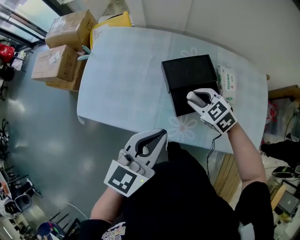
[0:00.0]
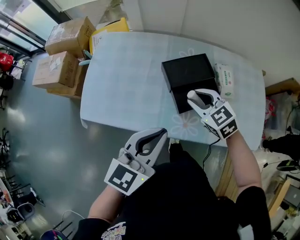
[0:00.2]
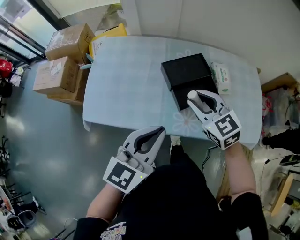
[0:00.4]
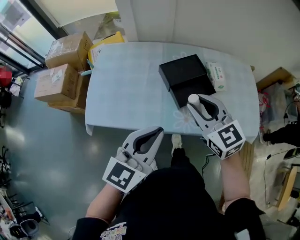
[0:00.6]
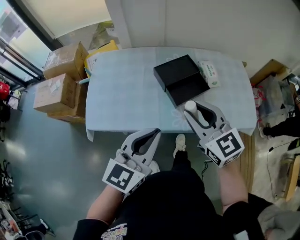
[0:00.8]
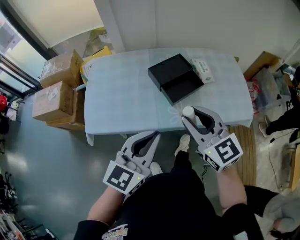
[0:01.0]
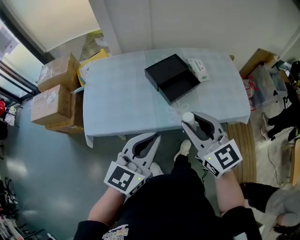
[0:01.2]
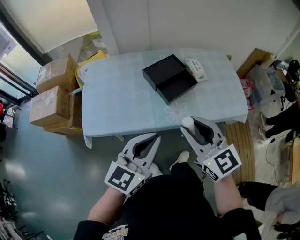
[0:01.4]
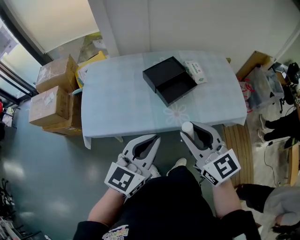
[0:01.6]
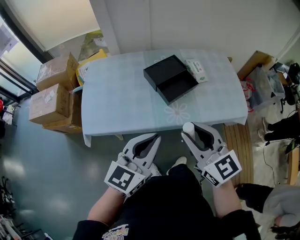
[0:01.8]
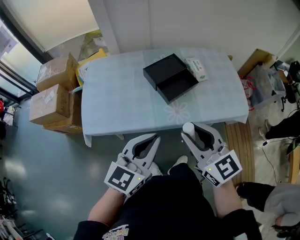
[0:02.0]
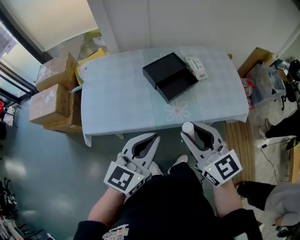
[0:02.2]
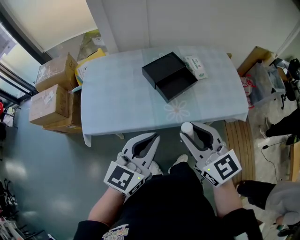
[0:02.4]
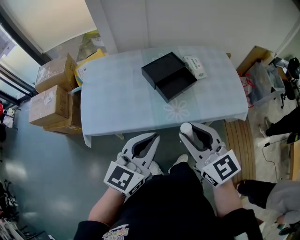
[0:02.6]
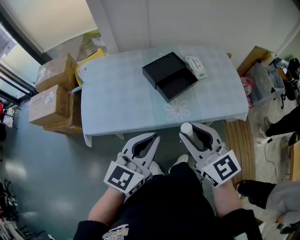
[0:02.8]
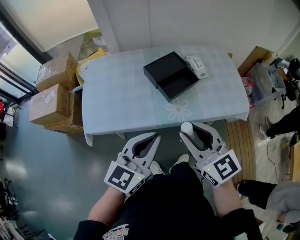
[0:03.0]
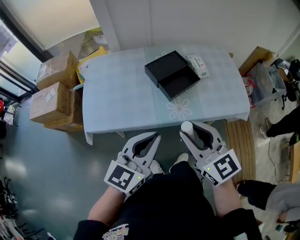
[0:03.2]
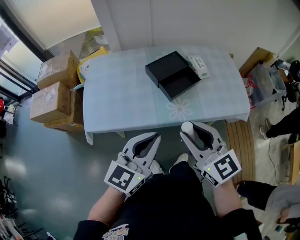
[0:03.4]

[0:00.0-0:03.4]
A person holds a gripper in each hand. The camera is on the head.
0:00.0 to 0:01.6: The left gripper shifts about 15 cm backward, and rotates about 20 degrees. The right gripper heads backward and upward, covering roughly 35 cm, and angles its fingers upward, by approximately 40 degrees.
0:01.6 to 0:03.4: There are only small adjustments of the grippers.

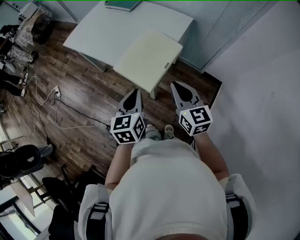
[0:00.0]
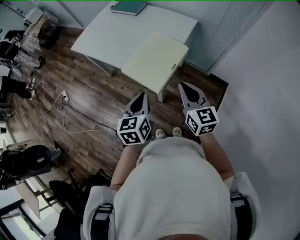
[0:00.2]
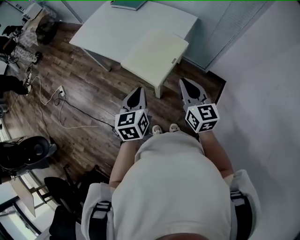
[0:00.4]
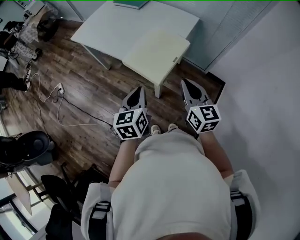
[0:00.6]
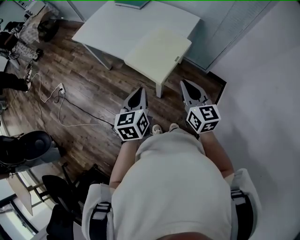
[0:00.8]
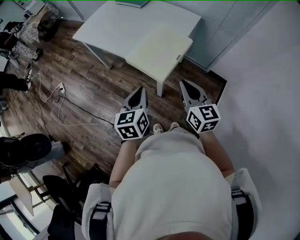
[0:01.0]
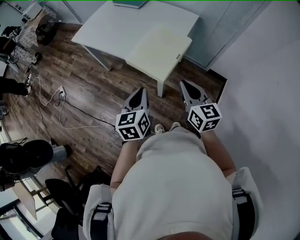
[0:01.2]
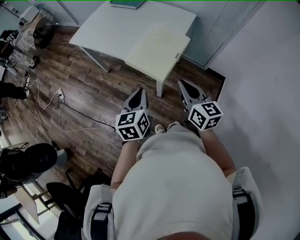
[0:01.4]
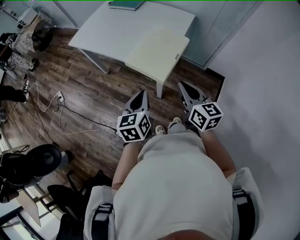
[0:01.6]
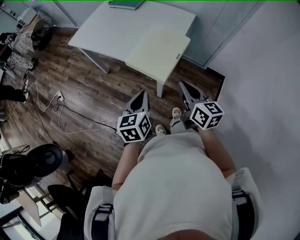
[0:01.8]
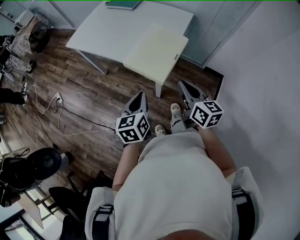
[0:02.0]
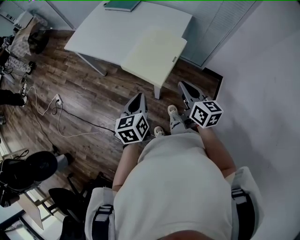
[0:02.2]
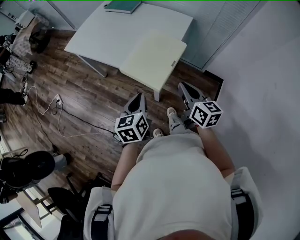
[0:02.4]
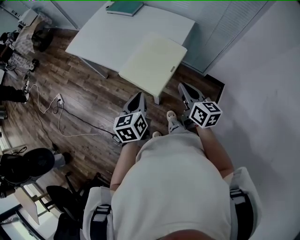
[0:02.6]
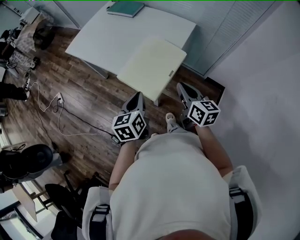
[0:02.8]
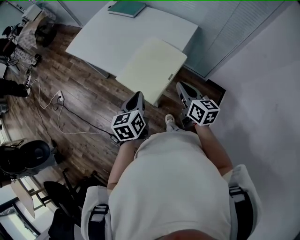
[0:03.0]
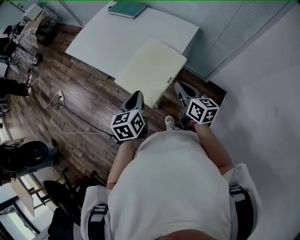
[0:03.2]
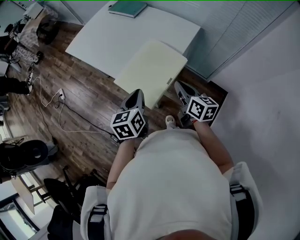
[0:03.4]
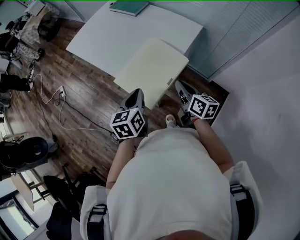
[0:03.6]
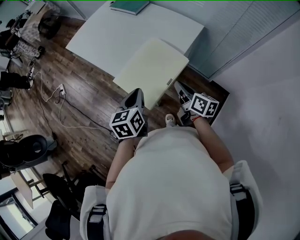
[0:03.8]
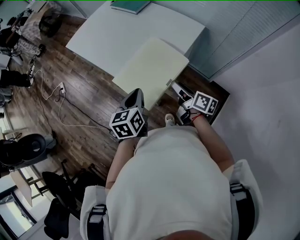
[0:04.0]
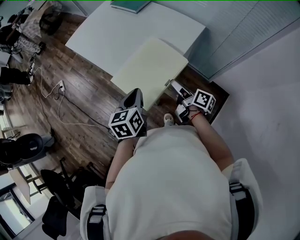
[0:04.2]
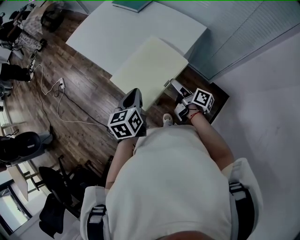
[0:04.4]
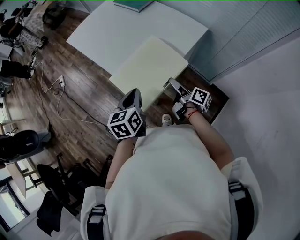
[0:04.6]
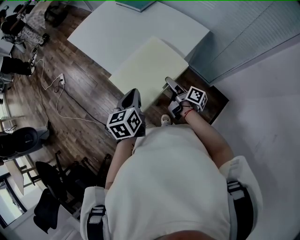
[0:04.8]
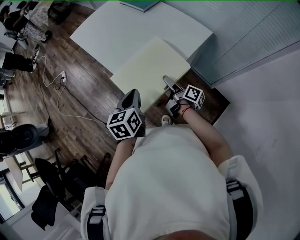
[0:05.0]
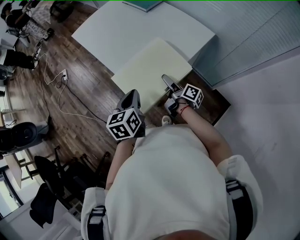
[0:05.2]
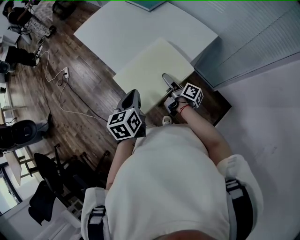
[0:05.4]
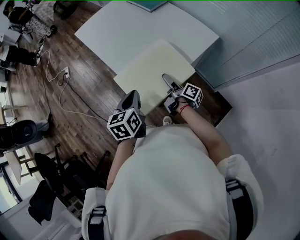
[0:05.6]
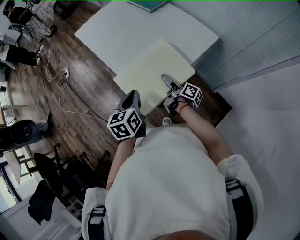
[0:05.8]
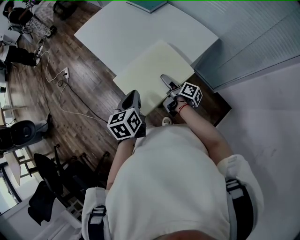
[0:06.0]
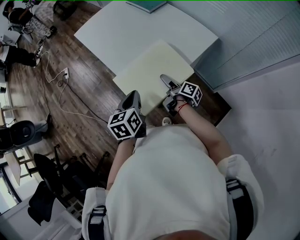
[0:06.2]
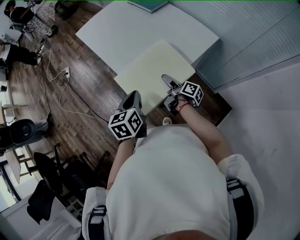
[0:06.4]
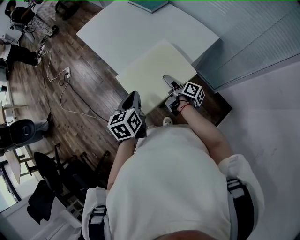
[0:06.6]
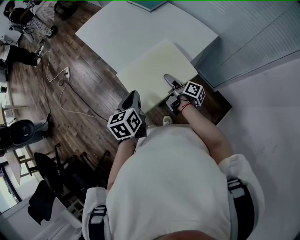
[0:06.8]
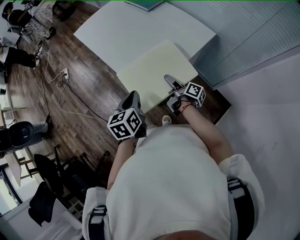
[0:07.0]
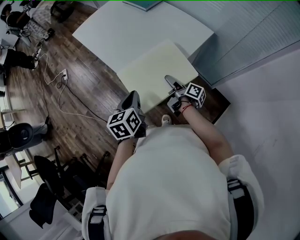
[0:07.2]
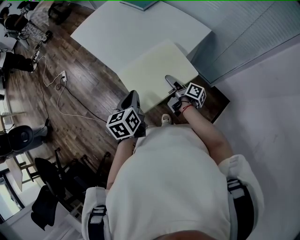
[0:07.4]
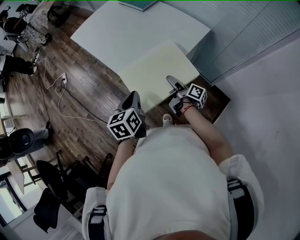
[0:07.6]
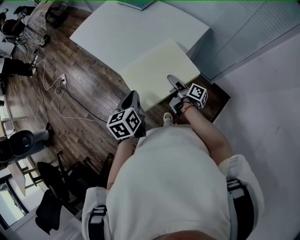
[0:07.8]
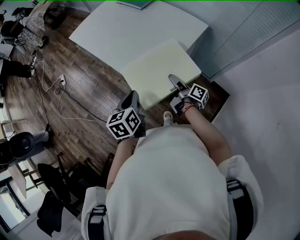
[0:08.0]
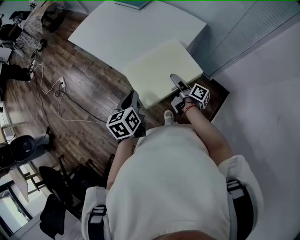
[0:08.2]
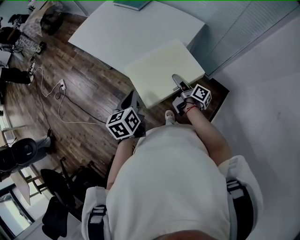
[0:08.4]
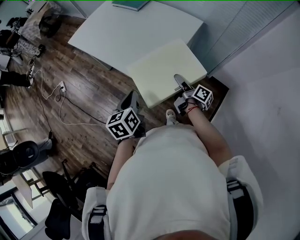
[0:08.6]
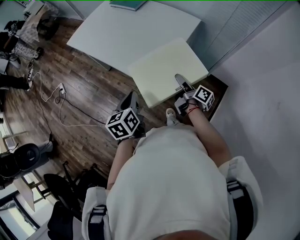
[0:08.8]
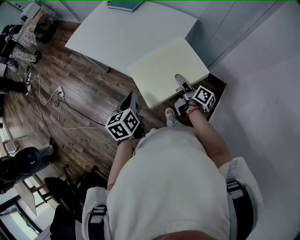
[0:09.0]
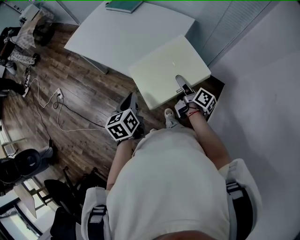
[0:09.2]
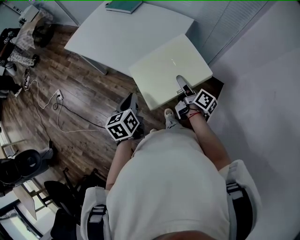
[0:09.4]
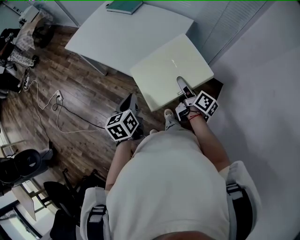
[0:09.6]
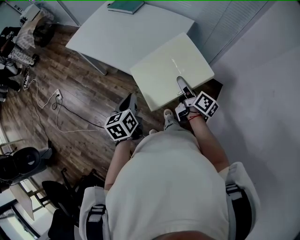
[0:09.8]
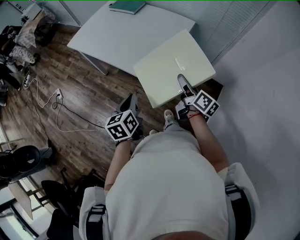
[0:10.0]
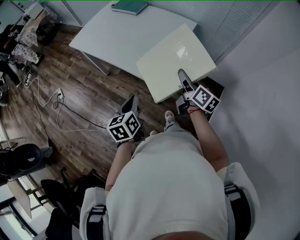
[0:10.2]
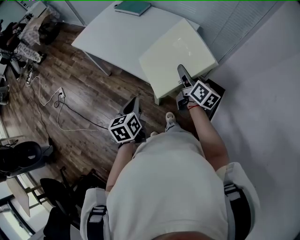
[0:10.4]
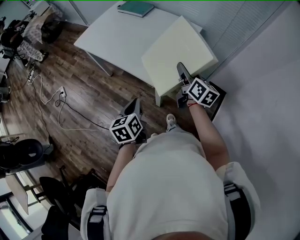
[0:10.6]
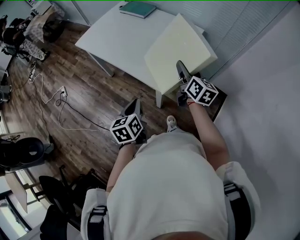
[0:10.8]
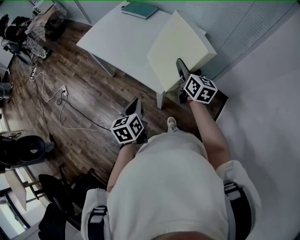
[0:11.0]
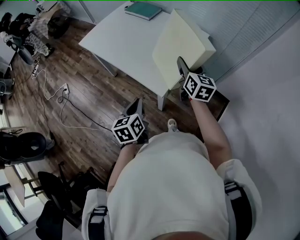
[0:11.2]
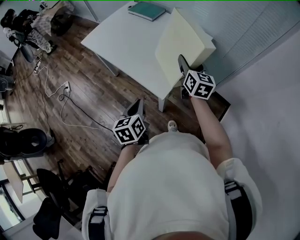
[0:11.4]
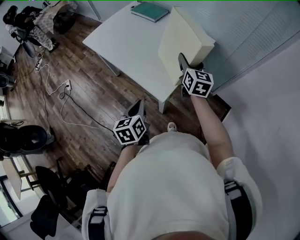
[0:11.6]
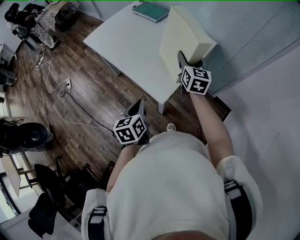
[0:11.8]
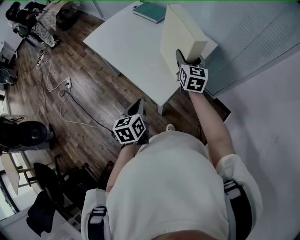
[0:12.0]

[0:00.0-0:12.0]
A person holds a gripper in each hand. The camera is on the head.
0:00.0 to 0:01.6: Both grippers move backward, about 5 cm.
0:01.6 to 0:03.0: The right gripper is displaced forward and to the right by about 15 cm. Meanwhile the left gripper shifts roughly 10 cm forward.
0:03.0 to 0:04.4: The right gripper is displaced downward and forward by some 15 cm, rotates around the line of its fingers by approximately 50 degrees, clockwise from behind, and opens up.
0:04.4 to 0:06.0: The right gripper moves forward and downward, approximately 10 cm.
0:06.0 to 0:07.6: The right gripper travels backward by some 5 cm.
0:07.6 to 0:09.0: The right gripper is displaced upward and backward by about 10 cm, while the left gripper ends up roughly 5 cm from where it was.
0:09.0 to 0:10.4: The right gripper is displaced upward by about 10 cm, and changes its angle by roughly 30 degrees.
0:10.4 to 0:12.0: The right gripper is displaced forward by some 20 cm, and changes its angle by roughly 40 degrees, while the left gripper is displaced forward by roughly 10 cm.

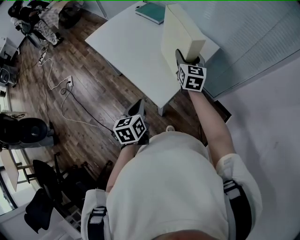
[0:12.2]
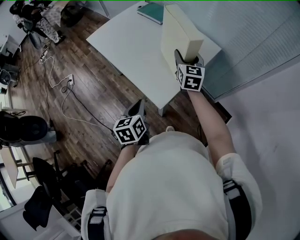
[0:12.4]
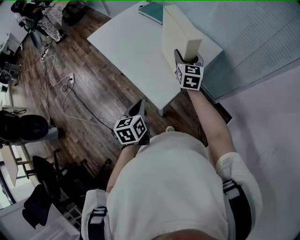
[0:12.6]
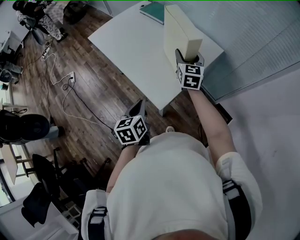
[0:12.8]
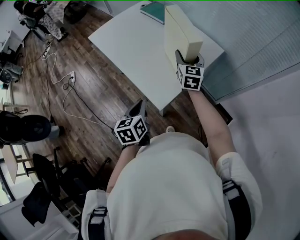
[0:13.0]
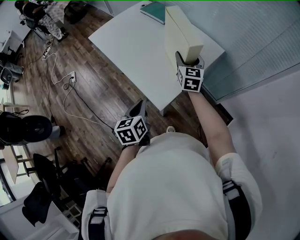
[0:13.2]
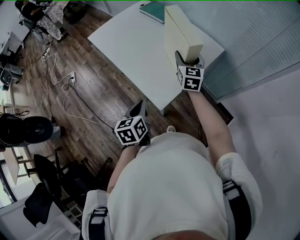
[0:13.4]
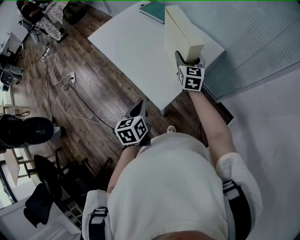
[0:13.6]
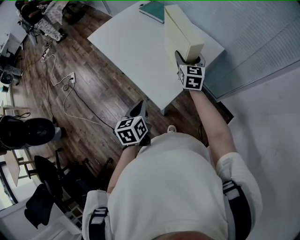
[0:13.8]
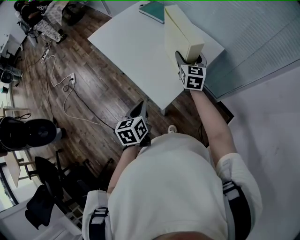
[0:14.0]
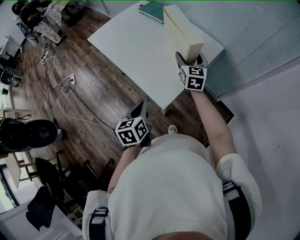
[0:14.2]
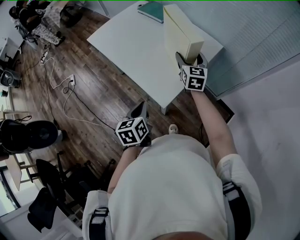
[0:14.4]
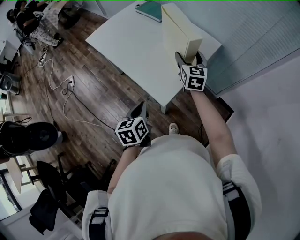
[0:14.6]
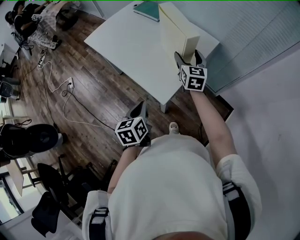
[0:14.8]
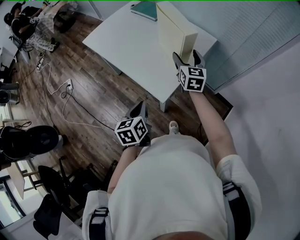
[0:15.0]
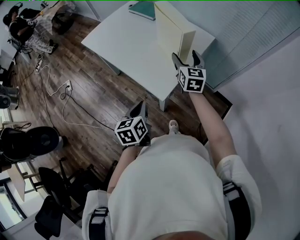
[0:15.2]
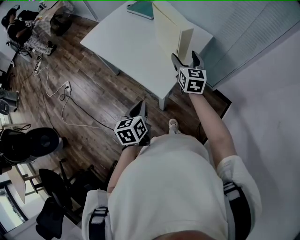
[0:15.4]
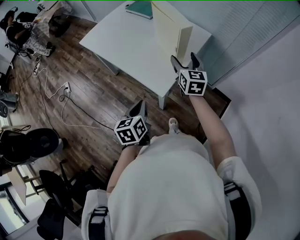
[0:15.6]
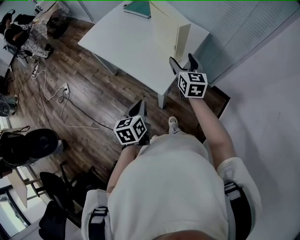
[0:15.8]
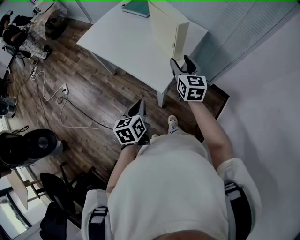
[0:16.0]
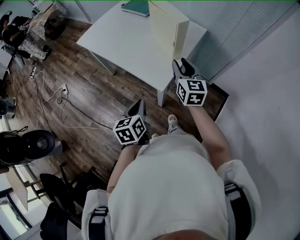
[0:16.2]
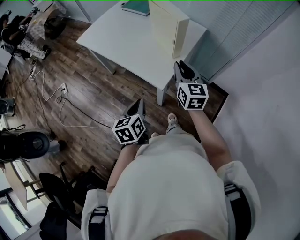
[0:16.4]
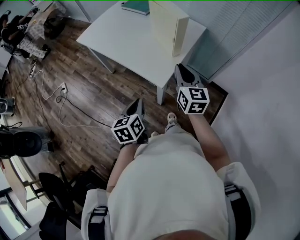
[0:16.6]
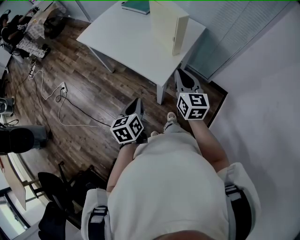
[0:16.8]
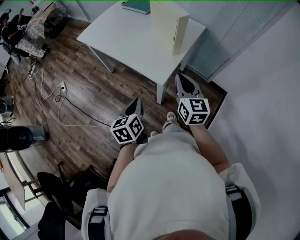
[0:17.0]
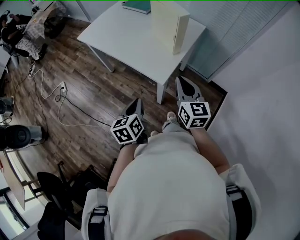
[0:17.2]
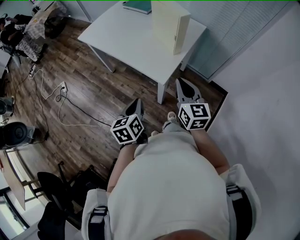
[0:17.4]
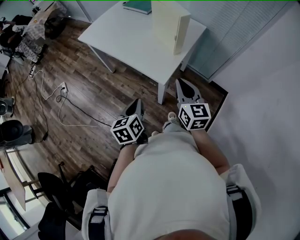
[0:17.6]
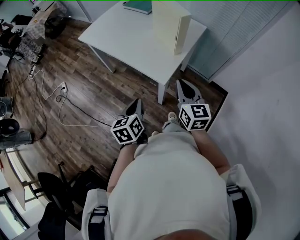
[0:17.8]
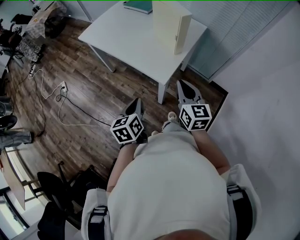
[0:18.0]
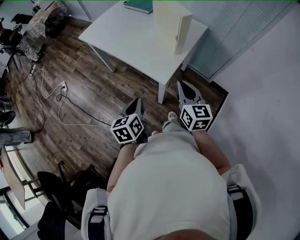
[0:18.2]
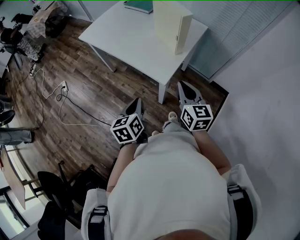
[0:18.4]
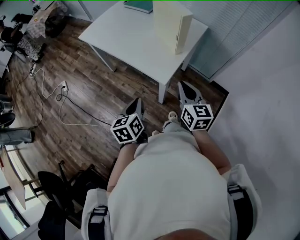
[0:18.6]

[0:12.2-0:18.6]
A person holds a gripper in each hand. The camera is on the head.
0:12.2 to 0:13.8: The grippers stay close to where they were, moving slightly.
0:13.8 to 0:15.4: The left gripper ends up roughly 5 cm from where it was; the right gripper moves backward, some 10 cm.
0:15.4 to 0:17.0: The left gripper shifts approximately 5 cm backward, while the right gripper moves backward, about 20 cm, and closes up.
0:17.0 to 0:18.6: The grippers make only small movements.

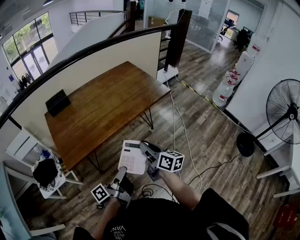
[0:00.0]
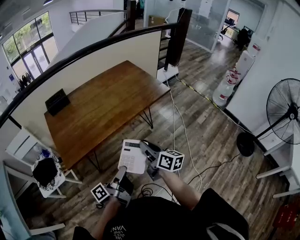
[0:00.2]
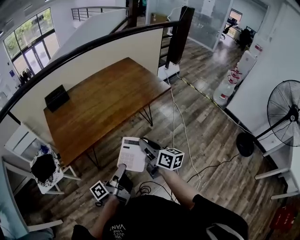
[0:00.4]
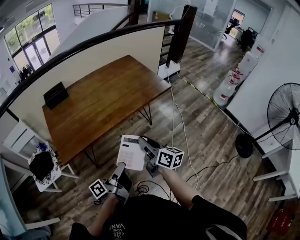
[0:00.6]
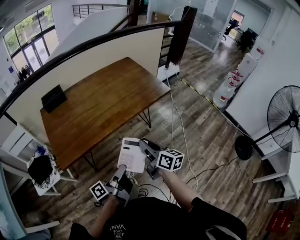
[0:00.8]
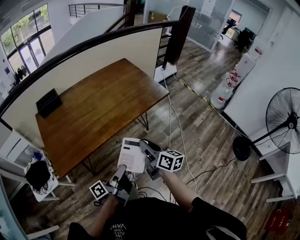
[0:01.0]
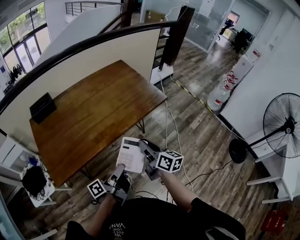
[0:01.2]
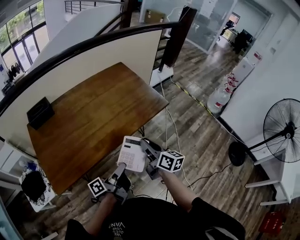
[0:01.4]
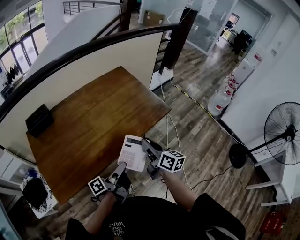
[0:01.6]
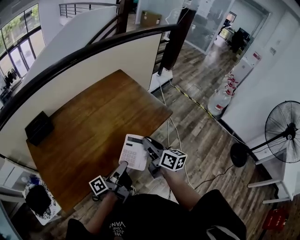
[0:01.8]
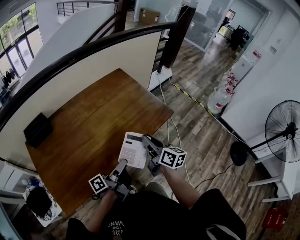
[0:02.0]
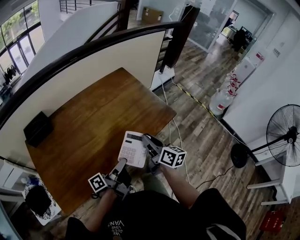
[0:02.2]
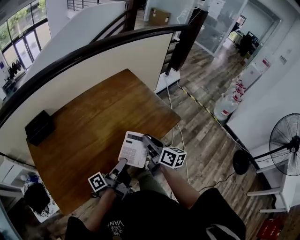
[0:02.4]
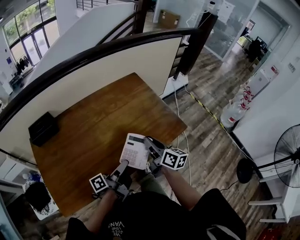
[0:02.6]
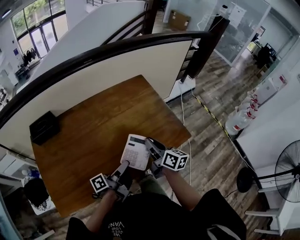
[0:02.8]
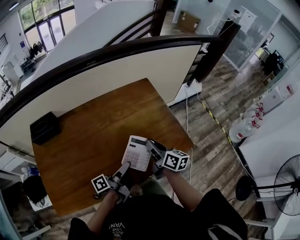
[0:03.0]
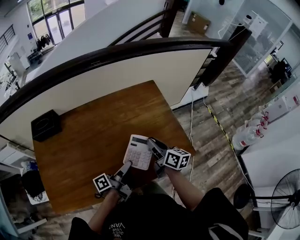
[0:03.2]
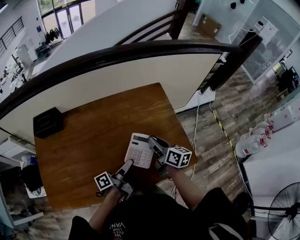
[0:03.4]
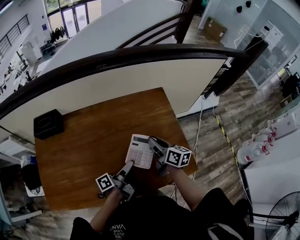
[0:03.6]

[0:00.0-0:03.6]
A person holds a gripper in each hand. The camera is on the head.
0:00.0 to 0:01.8: The right gripper moves approximately 25 cm.
0:01.8 to 0:03.6: The right gripper moves some 30 cm, and swivels about 30 degrees.
